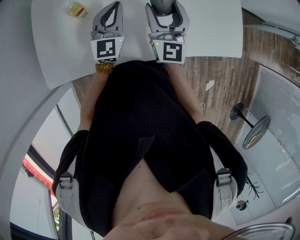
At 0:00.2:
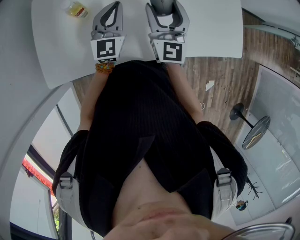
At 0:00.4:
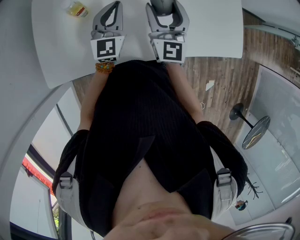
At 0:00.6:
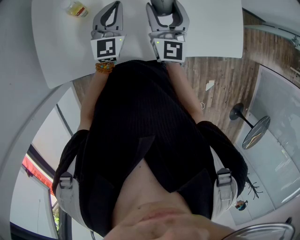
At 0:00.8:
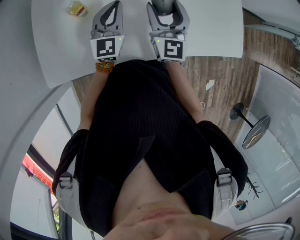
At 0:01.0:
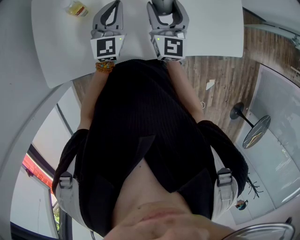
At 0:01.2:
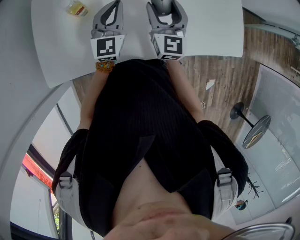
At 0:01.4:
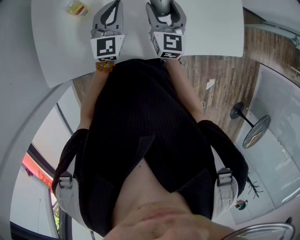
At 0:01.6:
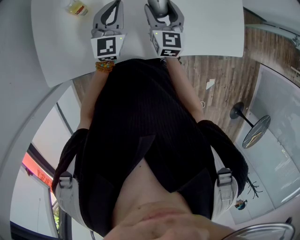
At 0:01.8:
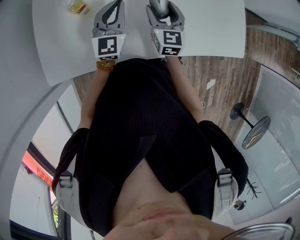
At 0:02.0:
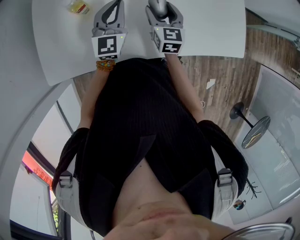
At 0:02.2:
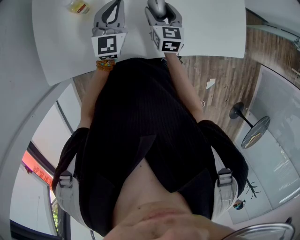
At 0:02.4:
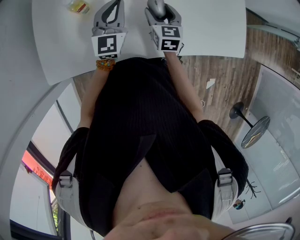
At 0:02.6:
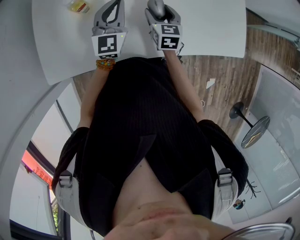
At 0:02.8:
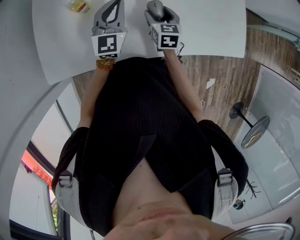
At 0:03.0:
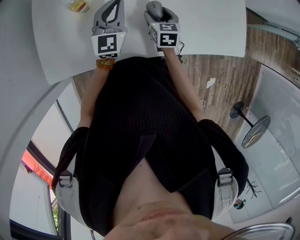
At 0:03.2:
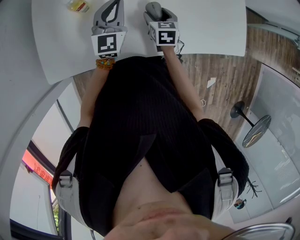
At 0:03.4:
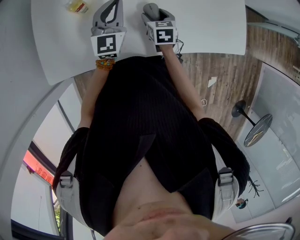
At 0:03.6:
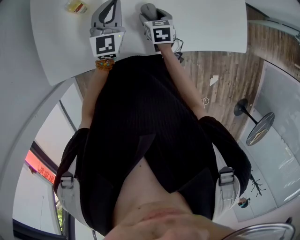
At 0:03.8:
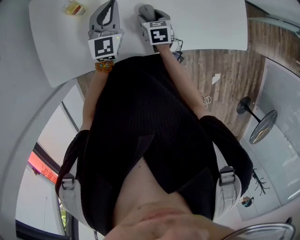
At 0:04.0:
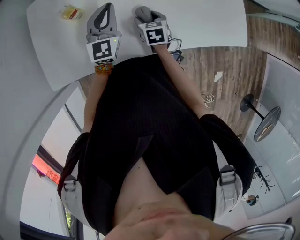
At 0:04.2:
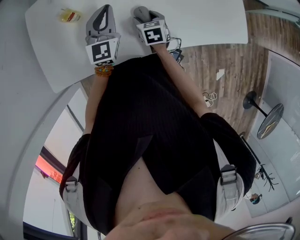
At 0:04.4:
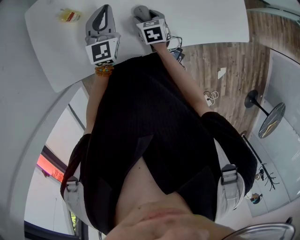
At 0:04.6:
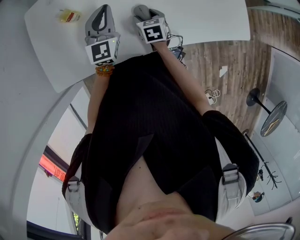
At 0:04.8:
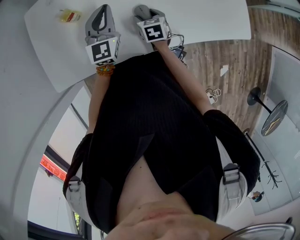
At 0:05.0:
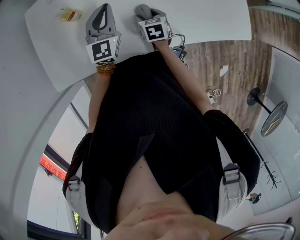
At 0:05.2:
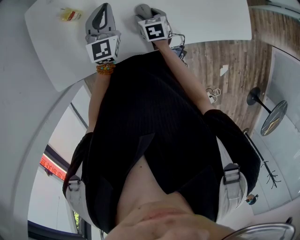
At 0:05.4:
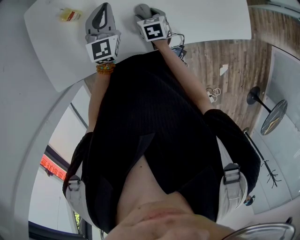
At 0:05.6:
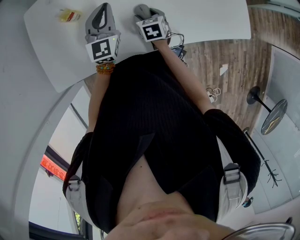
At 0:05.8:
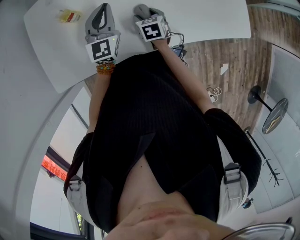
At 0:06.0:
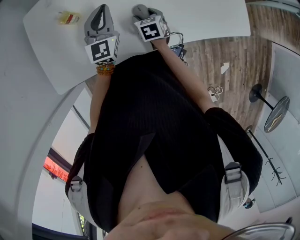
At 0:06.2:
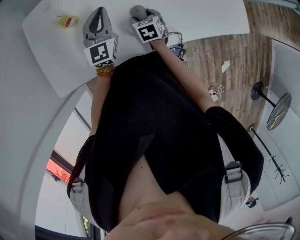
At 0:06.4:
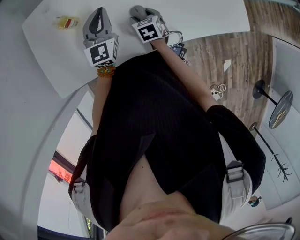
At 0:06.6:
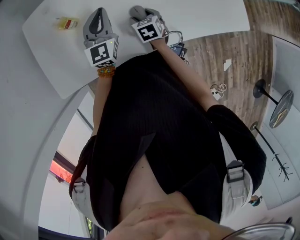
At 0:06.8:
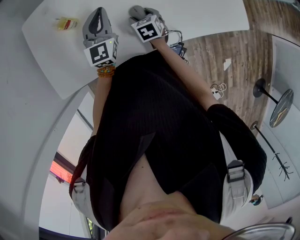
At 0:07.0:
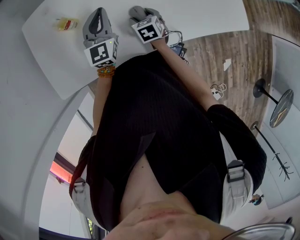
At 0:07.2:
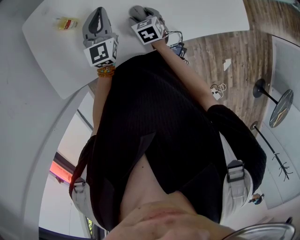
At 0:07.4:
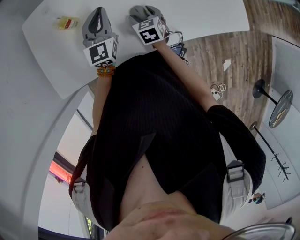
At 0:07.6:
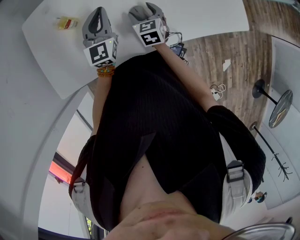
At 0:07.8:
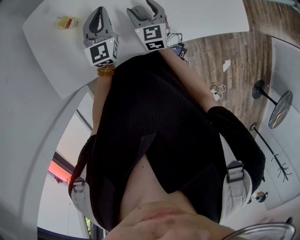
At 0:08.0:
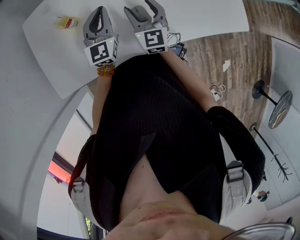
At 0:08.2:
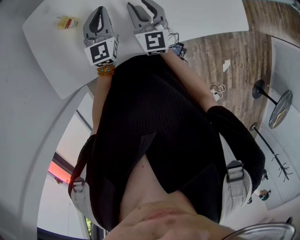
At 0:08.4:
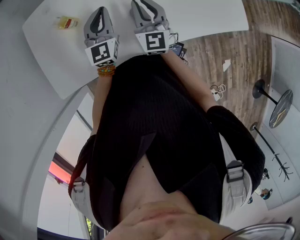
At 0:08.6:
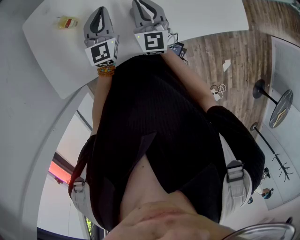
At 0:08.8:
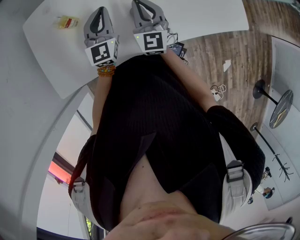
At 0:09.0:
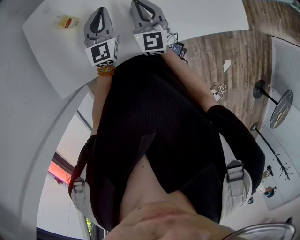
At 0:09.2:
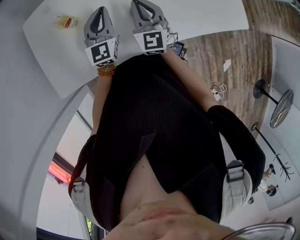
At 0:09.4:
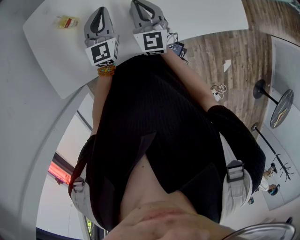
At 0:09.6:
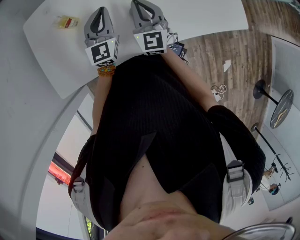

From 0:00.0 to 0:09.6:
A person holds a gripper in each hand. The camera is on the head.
From 0:00.0 to 0:01.6: The right gripper moves downward, some 10 cm.
From 0:01.6 to 0:03.2: The right gripper shifts some 10 cm downward, and rotates some 30 degrees.
From 0:03.2 to 0:04.8: The right gripper heads downward, covering about 5 cm.
From 0:04.8 to 0:06.4: Both grippers stay about where they are.
From 0:06.4 to 0:08.0: The right gripper is displaced upward by roughly 15 cm, and tips its fingers upward by roughly 40 degrees.
From 0:08.0 to 0:09.6: The right gripper closes up.

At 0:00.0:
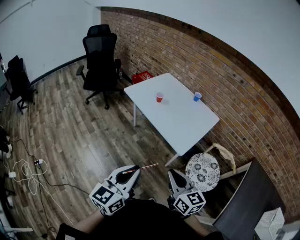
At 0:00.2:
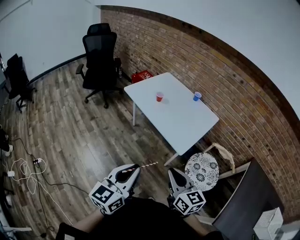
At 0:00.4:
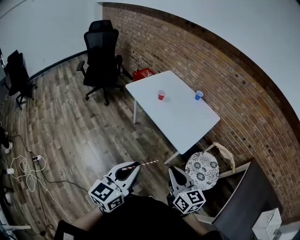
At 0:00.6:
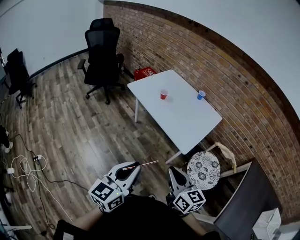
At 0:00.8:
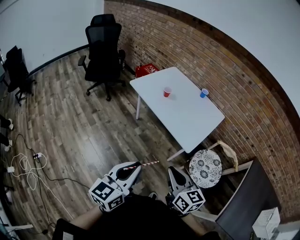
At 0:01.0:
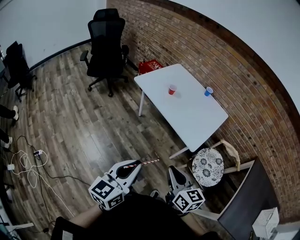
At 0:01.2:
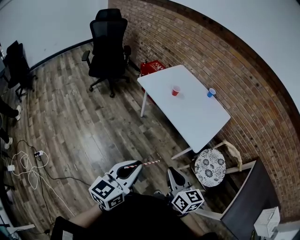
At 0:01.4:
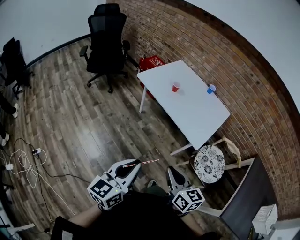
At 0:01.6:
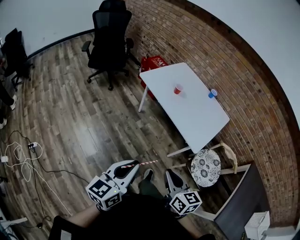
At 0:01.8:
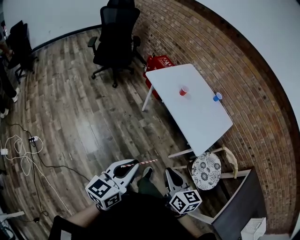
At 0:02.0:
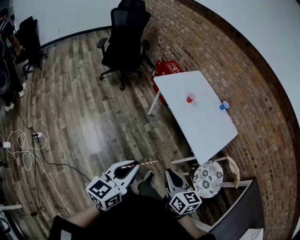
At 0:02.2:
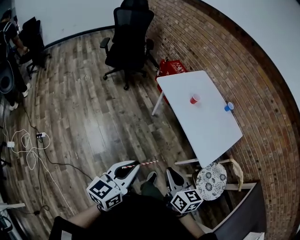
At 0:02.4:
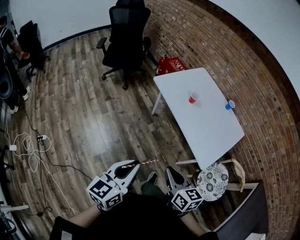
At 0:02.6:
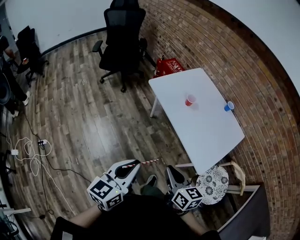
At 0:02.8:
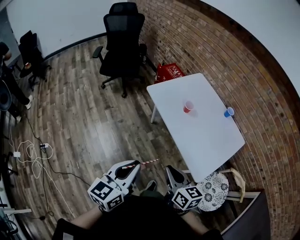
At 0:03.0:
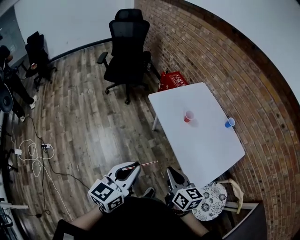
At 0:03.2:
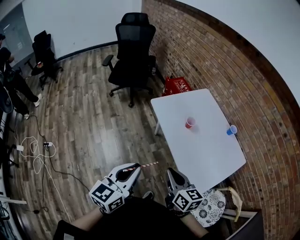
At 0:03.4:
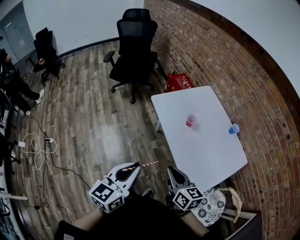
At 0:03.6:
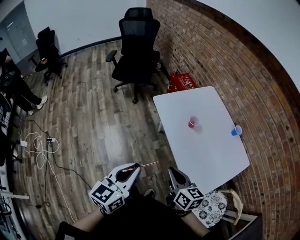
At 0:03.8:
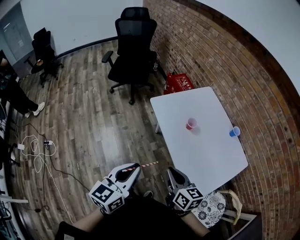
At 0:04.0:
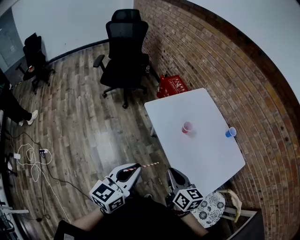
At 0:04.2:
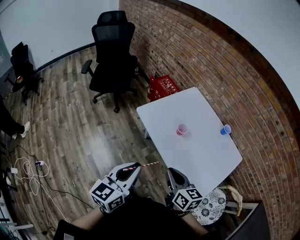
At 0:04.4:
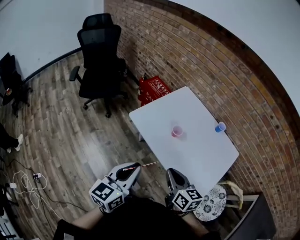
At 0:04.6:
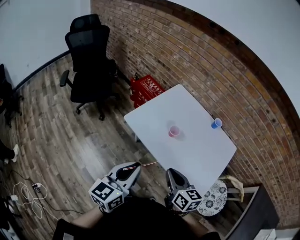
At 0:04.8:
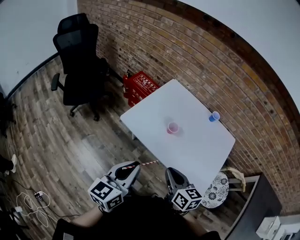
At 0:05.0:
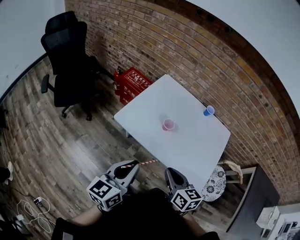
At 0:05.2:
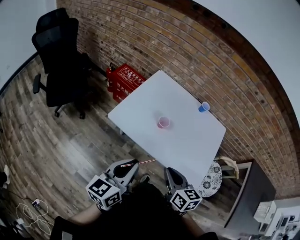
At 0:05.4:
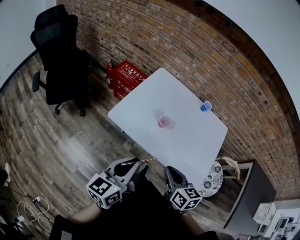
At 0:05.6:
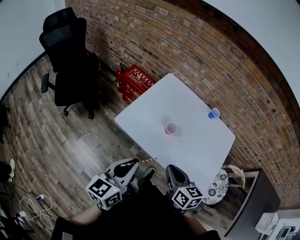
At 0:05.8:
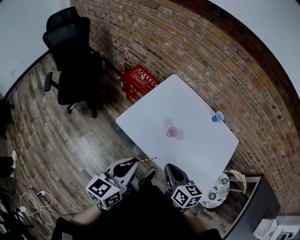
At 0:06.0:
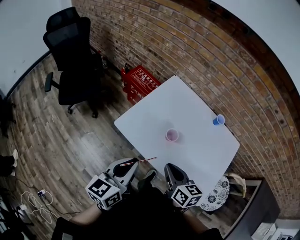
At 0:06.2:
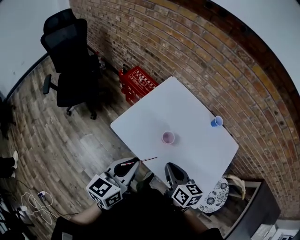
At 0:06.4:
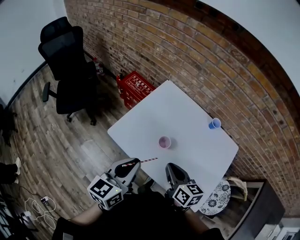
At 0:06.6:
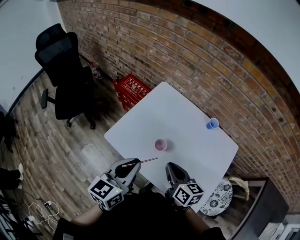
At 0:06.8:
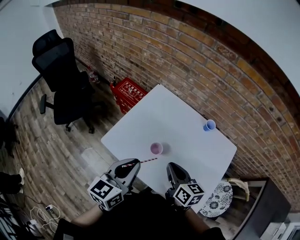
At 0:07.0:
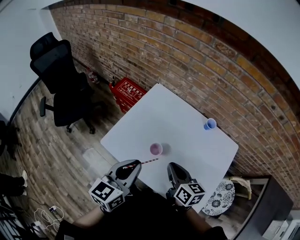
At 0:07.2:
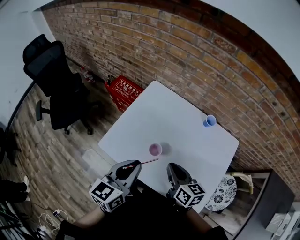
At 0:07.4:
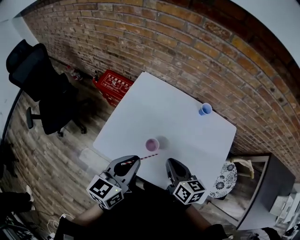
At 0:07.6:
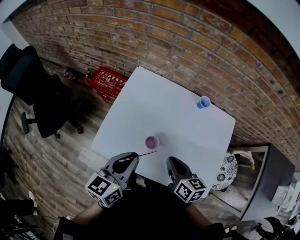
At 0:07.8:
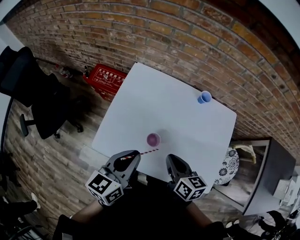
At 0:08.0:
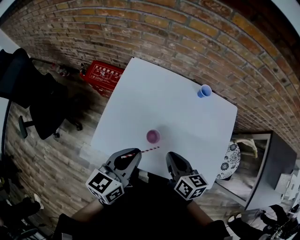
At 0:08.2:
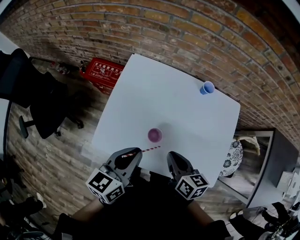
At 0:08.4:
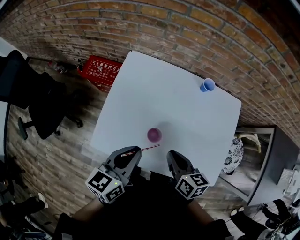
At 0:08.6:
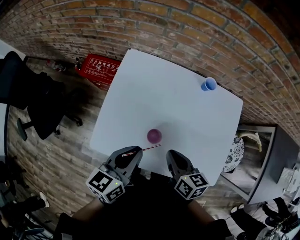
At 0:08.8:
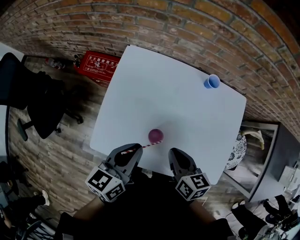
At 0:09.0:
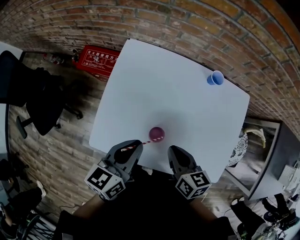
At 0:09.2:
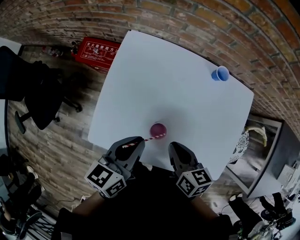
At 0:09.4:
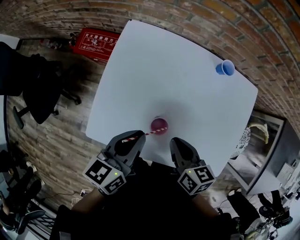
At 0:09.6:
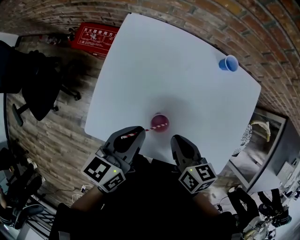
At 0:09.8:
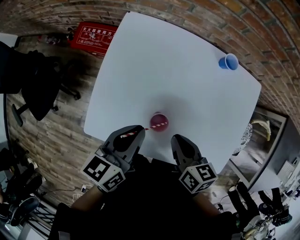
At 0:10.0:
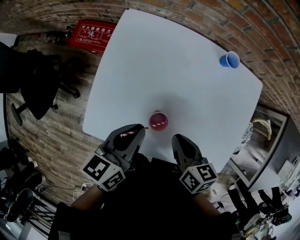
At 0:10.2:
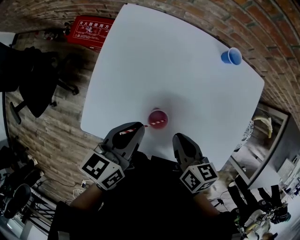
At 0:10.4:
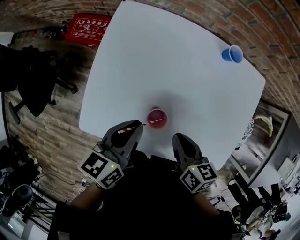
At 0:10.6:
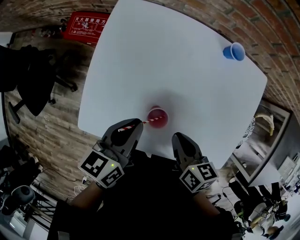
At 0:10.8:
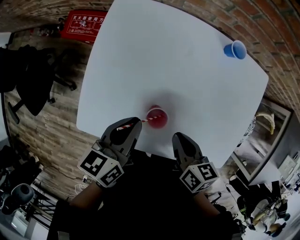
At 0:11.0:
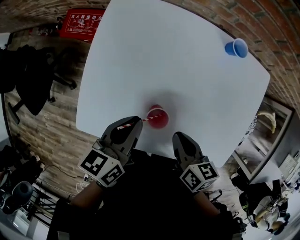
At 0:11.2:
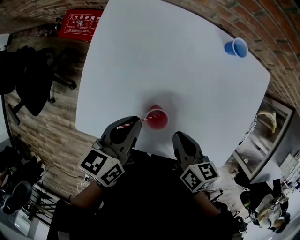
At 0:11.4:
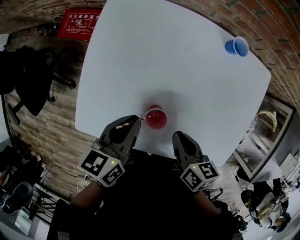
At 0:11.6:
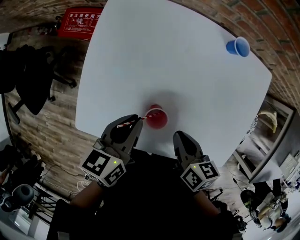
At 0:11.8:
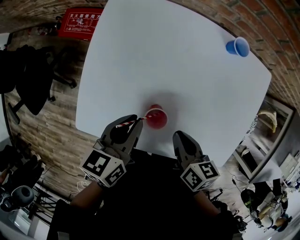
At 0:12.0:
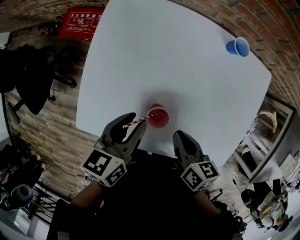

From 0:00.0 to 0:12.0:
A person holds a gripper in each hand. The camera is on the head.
From 0:00.0 to 0:01.6: The grippers both shift to the left by some 15 cm.
From 0:01.6 to 0:03.0: The two grippers go approximately 25 cm forward.
From 0:03.0 to 0:04.4: The two grippers go about 20 cm forward.
From 0:04.4 to 0:06.0: The grippers both shift forward by about 15 cm.
From 0:06.0 to 0:07.6: The grippers both shift forward and to the right by some 20 cm. The right gripper turns by some 20 degrees.
From 0:07.6 to 0:09.0: The right gripper is displaced downward by approximately 5 cm; the left gripper shifts roughly 10 cm downward and forward.
From 0:09.0 to 0:10.4: The grippers both shift downward by some 10 cm.
From 0:10.4 to 0:12.0: The left gripper opens.

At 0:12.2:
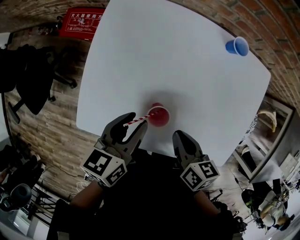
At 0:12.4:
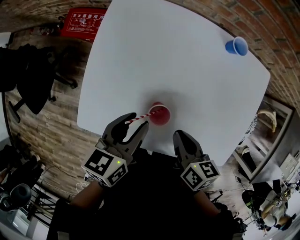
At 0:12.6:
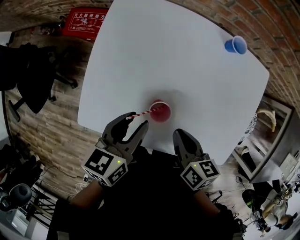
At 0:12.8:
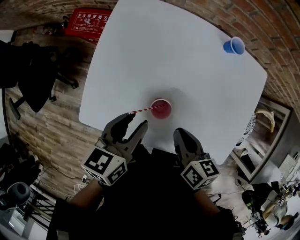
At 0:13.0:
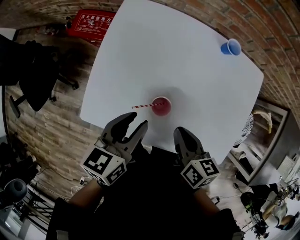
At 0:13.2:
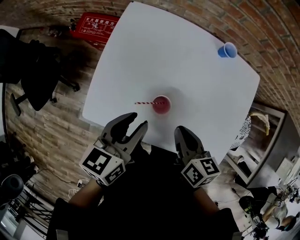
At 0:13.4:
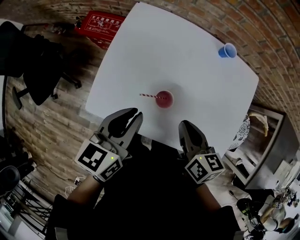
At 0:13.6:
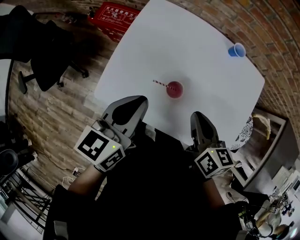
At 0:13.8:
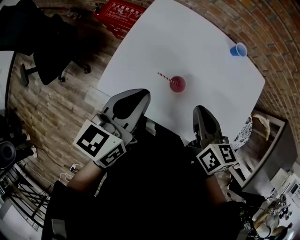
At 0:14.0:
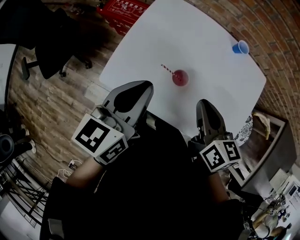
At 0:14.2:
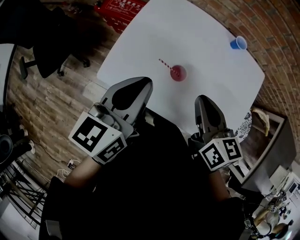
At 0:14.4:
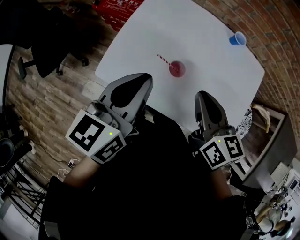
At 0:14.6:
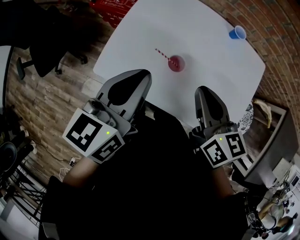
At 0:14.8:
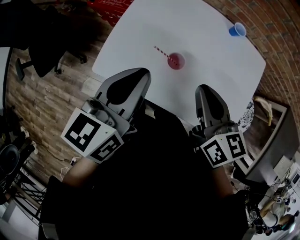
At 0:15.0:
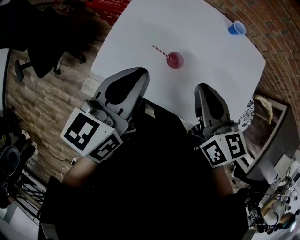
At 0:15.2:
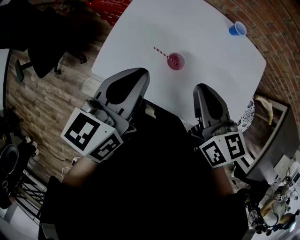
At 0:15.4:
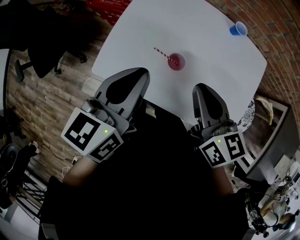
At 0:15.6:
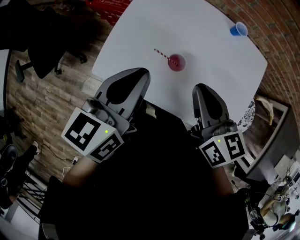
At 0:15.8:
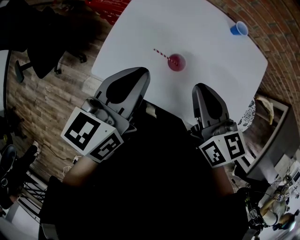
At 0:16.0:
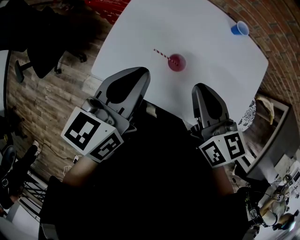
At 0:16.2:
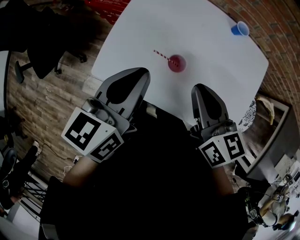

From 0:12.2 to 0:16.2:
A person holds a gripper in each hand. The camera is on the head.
From 0:12.2 to 0:13.6: The right gripper heads upward, covering some 10 cm, while the left gripper is displaced upward and backward by approximately 15 cm, and closes up.
From 0:13.6 to 0:14.8: The left gripper moves about 5 cm. Meanwhile the right gripper goes roughly 5 cm upward.
From 0:14.8 to 0:16.2: The grippers make only small movements.
